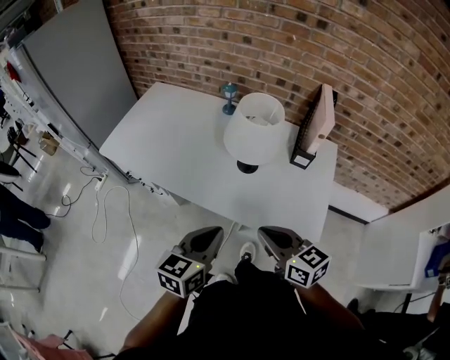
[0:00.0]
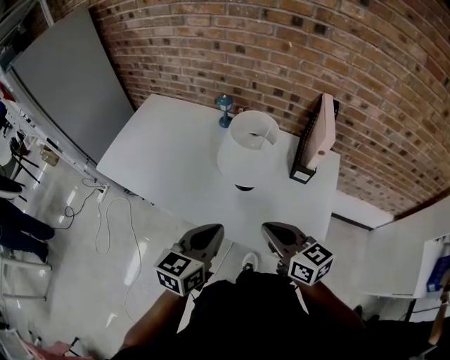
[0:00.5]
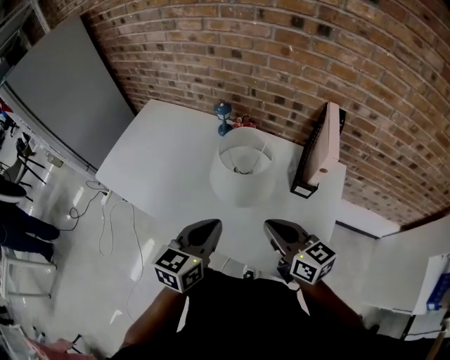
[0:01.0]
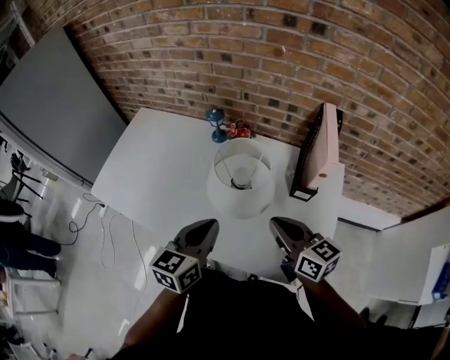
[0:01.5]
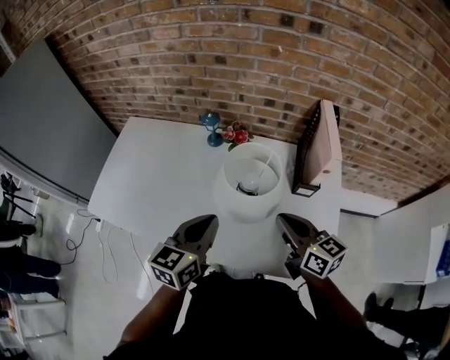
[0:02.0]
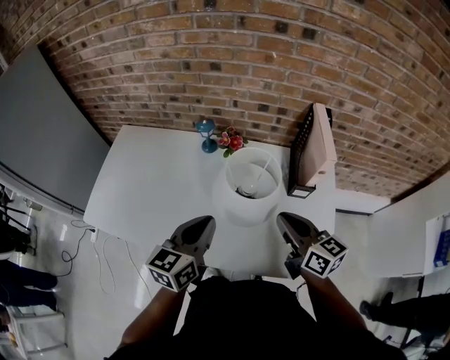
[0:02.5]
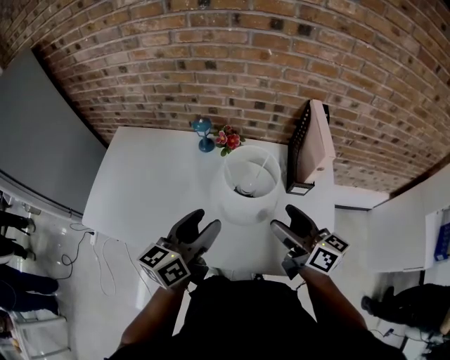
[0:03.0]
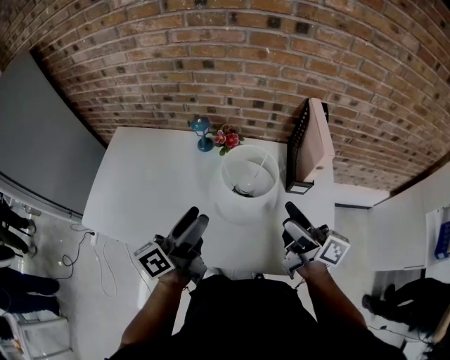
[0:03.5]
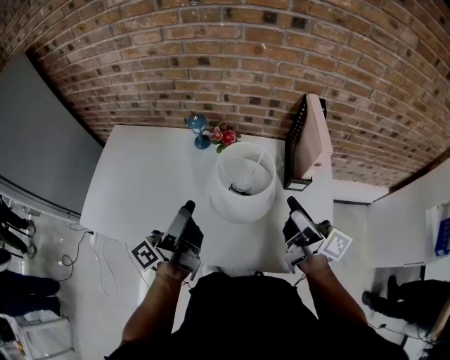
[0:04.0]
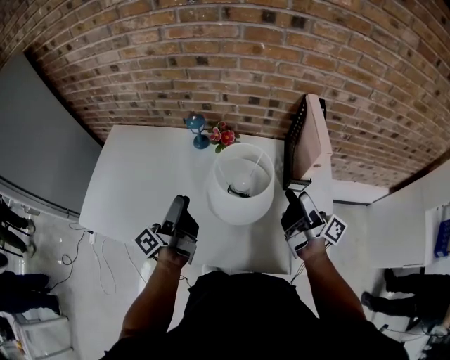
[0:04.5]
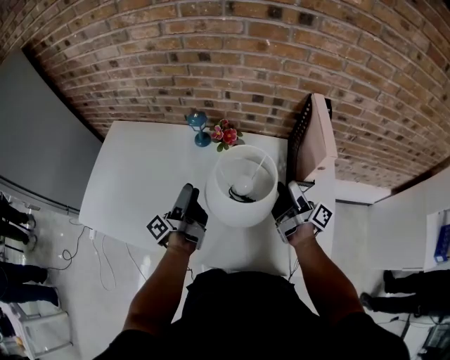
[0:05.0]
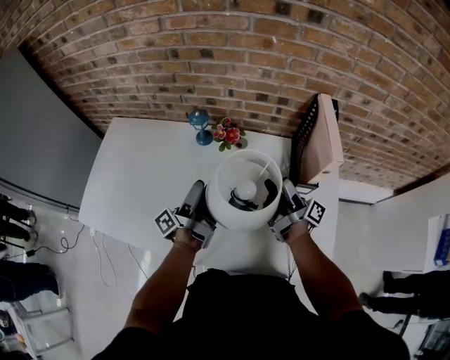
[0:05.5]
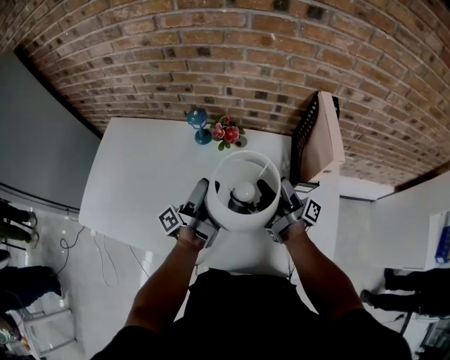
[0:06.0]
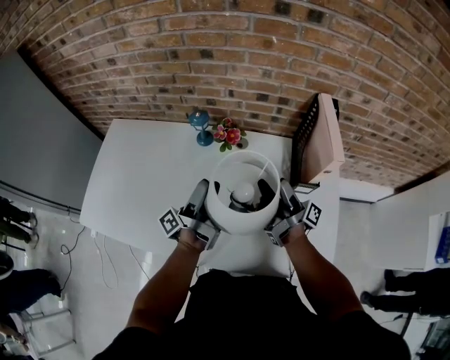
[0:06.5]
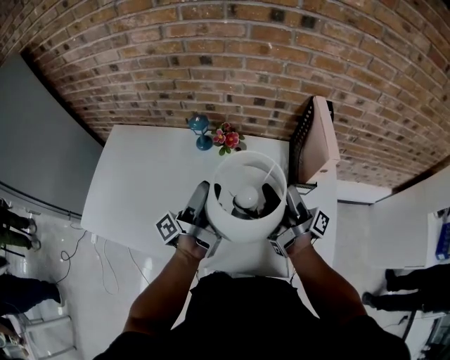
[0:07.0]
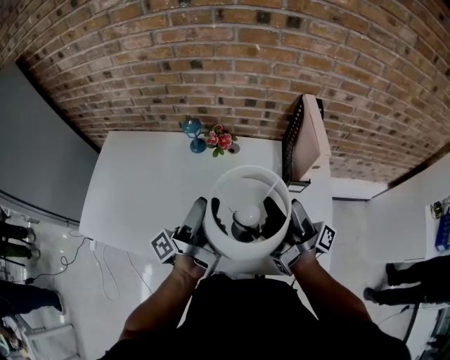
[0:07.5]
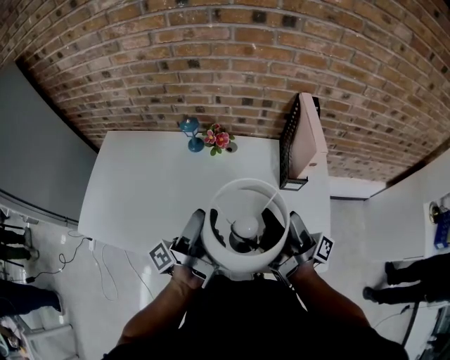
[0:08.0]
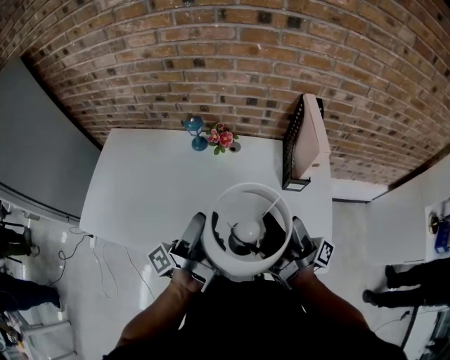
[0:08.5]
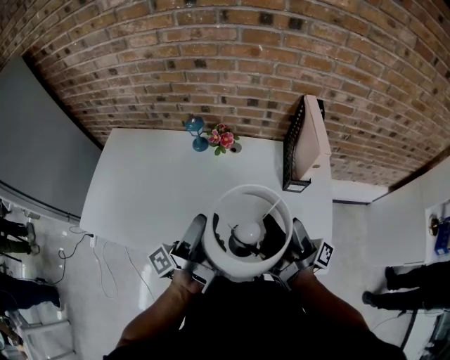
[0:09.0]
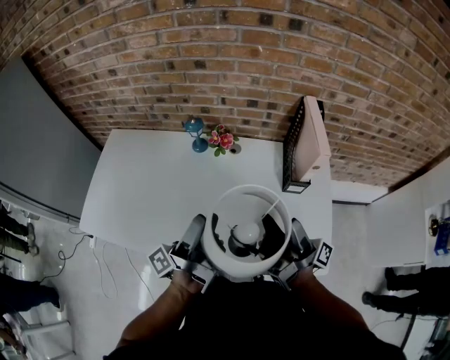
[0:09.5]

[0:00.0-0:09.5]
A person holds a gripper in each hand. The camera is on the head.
0:00.0 to 0:02.0: Both grippers move forward, approximately 25 cm.
0:02.0 to 0:04.0: The left gripper travels to the left by roughly 5 cm, rolls counterclockwise, seen from behind, by roughly 50 degrees, and opens up. Meanwhile the right gripper shifts by roughly 5 cm, rotates approximately 40 degrees, and opens up.
0:04.0 to 0:05.5: The right gripper heads forward and downward, covering roughly 15 cm, and swivels some 30 degrees. The left gripper goes some 15 cm downward and forward.
0:05.5 to 0:07.5: The two grippers go approximately 15 cm upward and backward.
0:07.5 to 0:09.5: The grippers make only small movements.

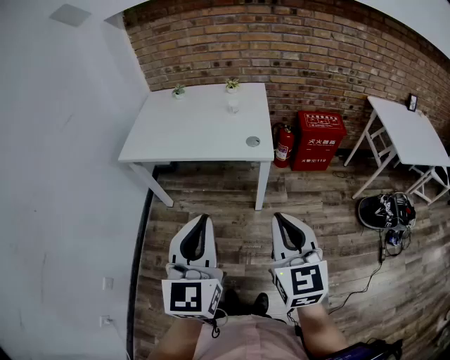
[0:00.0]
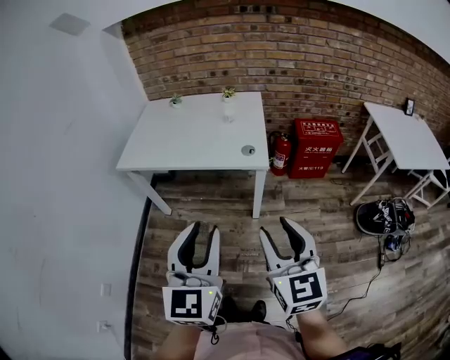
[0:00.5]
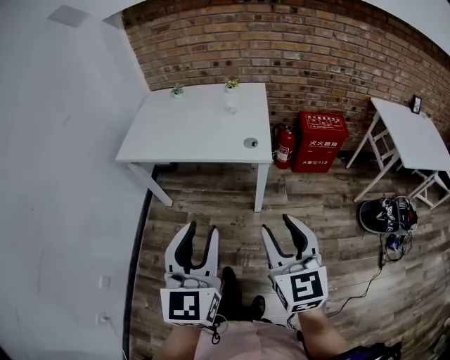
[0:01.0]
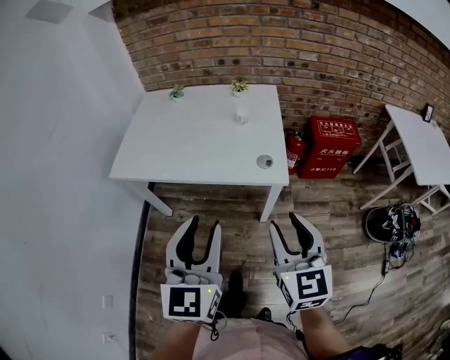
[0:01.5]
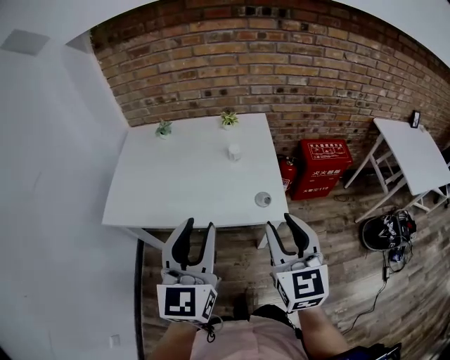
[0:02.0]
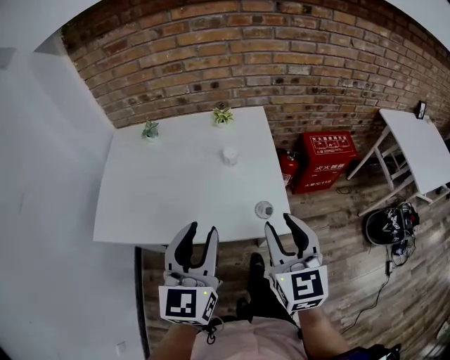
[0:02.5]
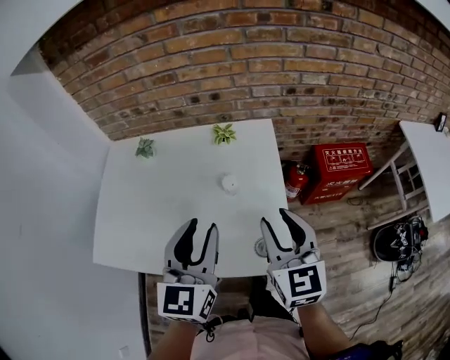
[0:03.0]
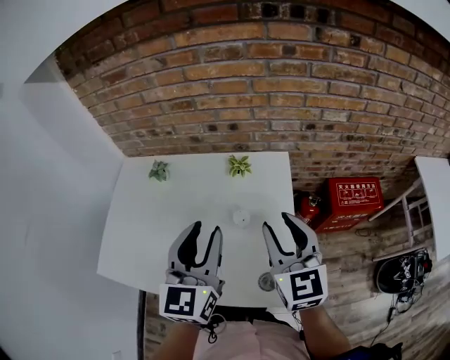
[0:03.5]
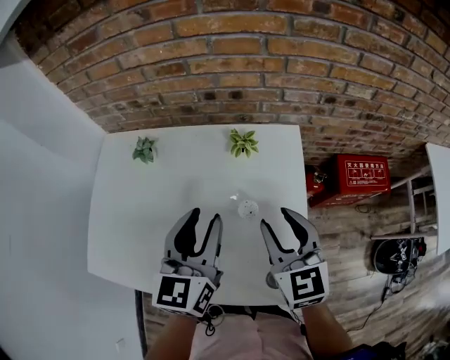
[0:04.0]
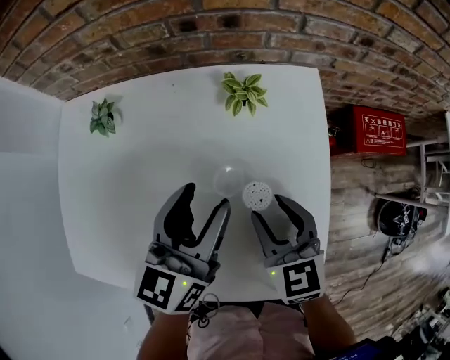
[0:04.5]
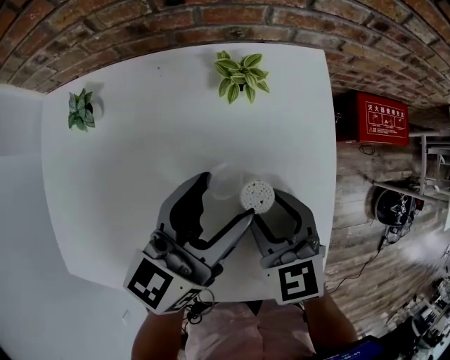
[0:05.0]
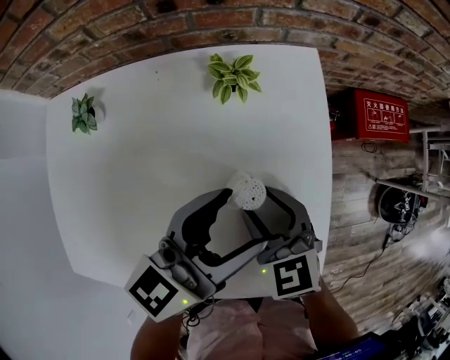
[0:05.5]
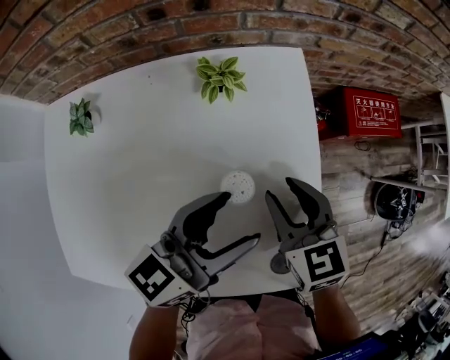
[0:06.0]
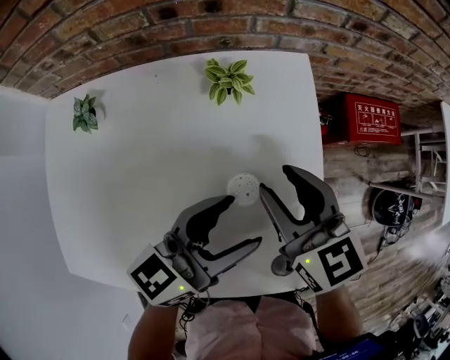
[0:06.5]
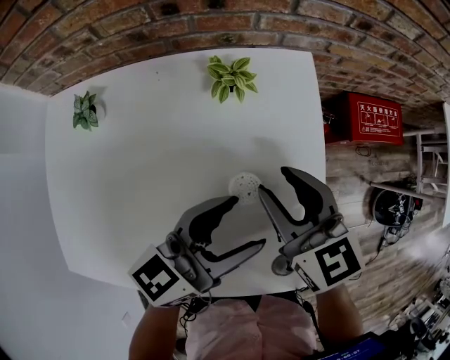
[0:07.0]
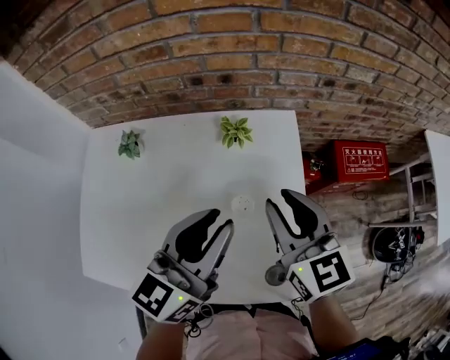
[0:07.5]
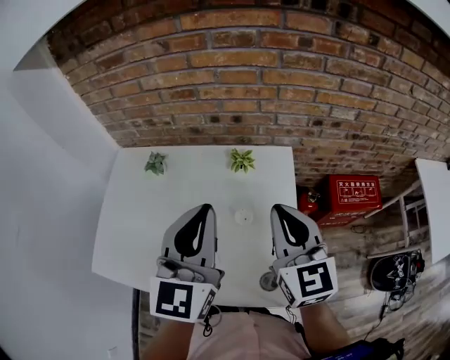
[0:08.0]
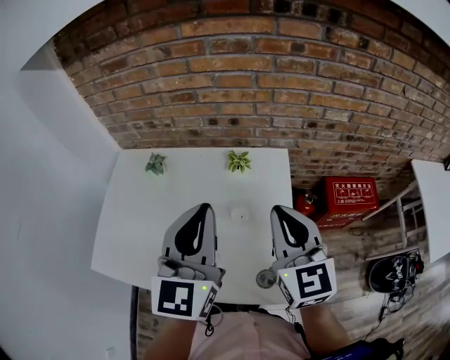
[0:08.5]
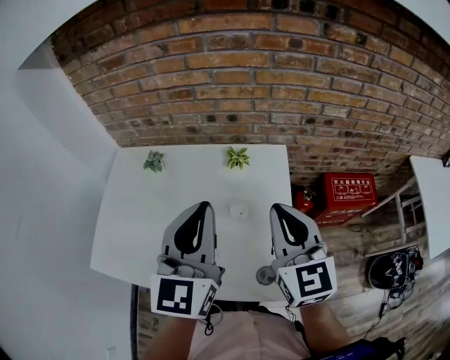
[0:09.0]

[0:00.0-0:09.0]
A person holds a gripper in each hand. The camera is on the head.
0:00.0 to 0:02.0: The grippers both shift forward by roughly 30 cm. The left gripper opens its fingers, while the right gripper opens.
0:02.0 to 0:04.5: The grippers both shift forward and downward by about 40 cm. The left gripper swivels roughly 30 degrees; the right gripper turns by approximately 30 degrees.
0:04.5 to 0:07.0: The right gripper shifts by some 5 cm, while the left gripper shifts approximately 10 cm to the right, and changes its angle by approximately 30 degrees.
0:07.0 to 0:09.0: The right gripper moves upward and backward, roughly 20 cm, turns by approximately 20 degrees, and closes its fingers. The left gripper is displaced upward by some 25 cm, rotates approximately 60 degrees, and closes up.

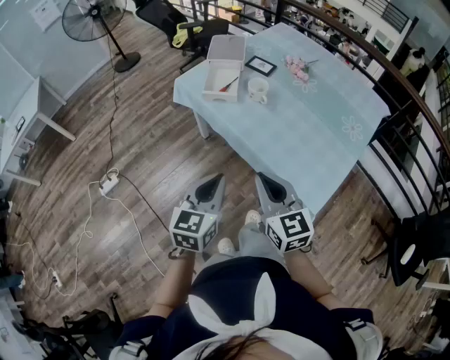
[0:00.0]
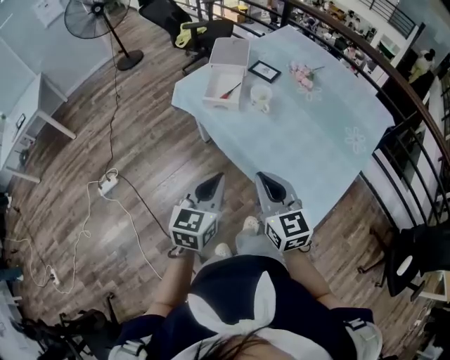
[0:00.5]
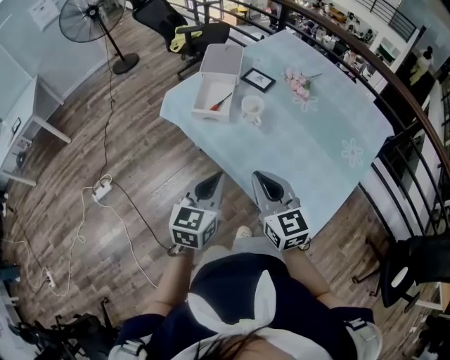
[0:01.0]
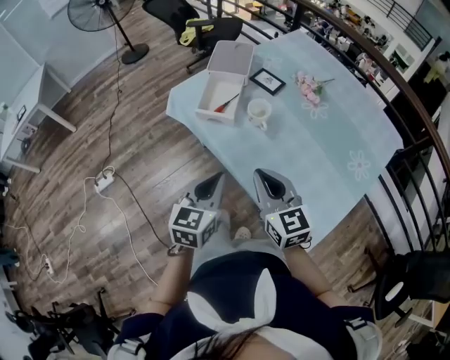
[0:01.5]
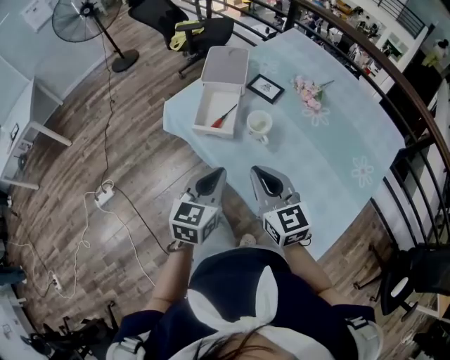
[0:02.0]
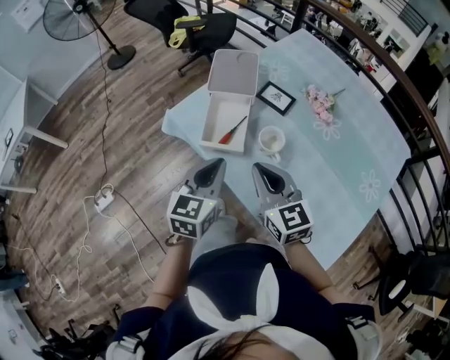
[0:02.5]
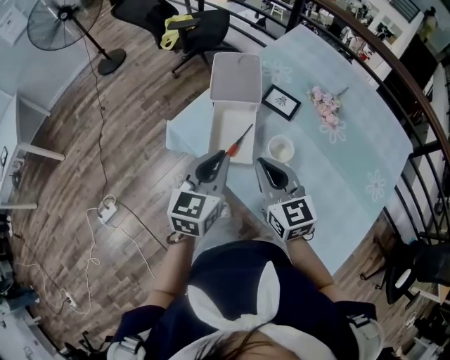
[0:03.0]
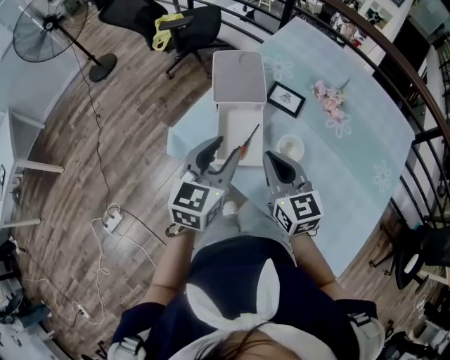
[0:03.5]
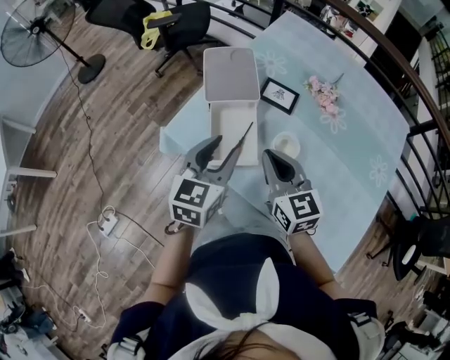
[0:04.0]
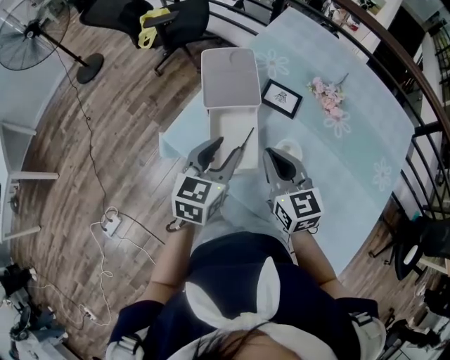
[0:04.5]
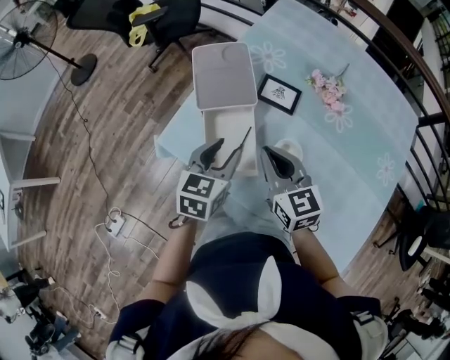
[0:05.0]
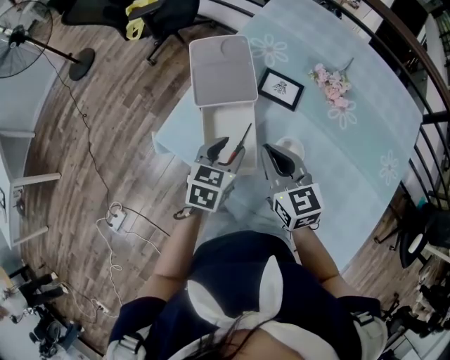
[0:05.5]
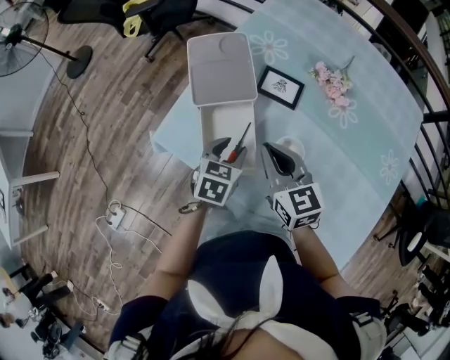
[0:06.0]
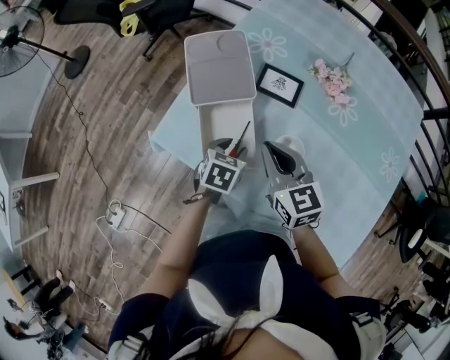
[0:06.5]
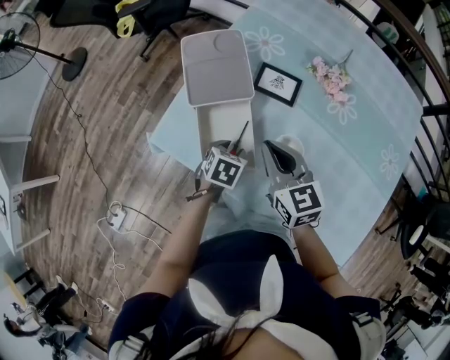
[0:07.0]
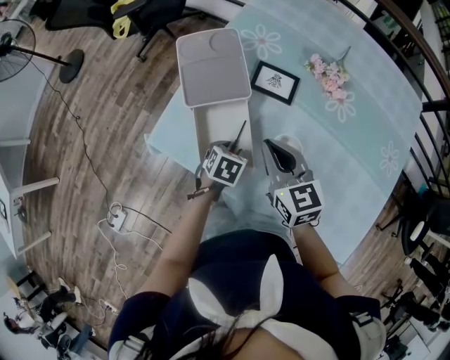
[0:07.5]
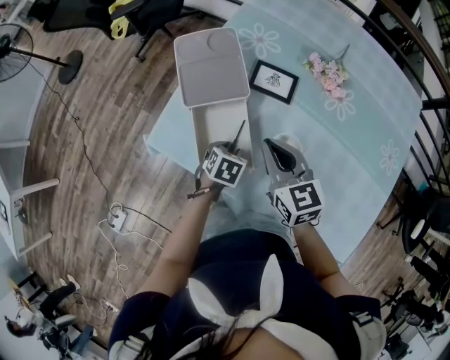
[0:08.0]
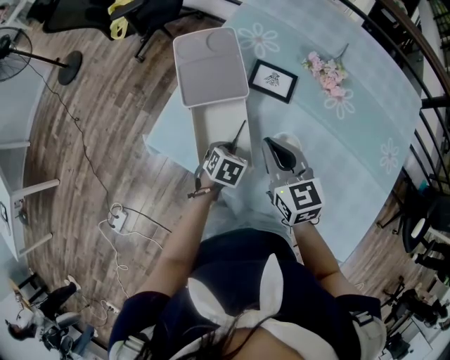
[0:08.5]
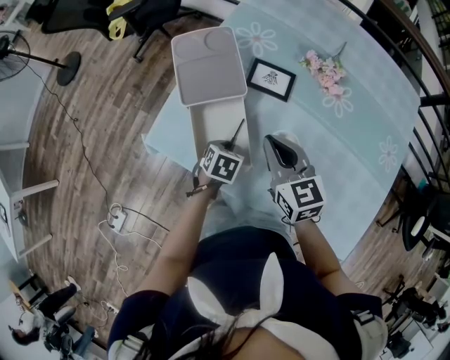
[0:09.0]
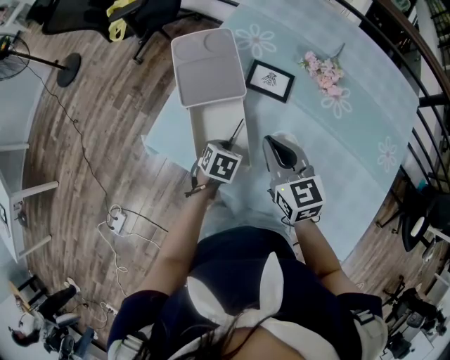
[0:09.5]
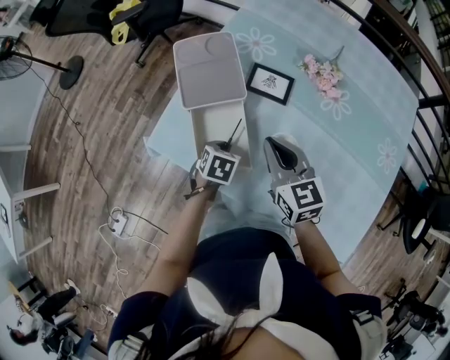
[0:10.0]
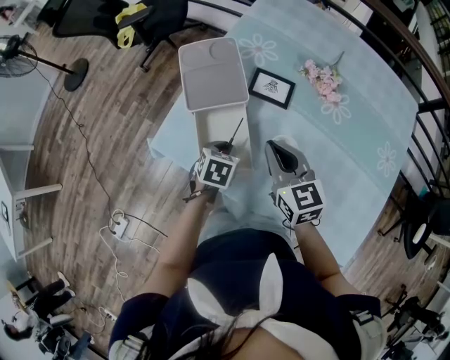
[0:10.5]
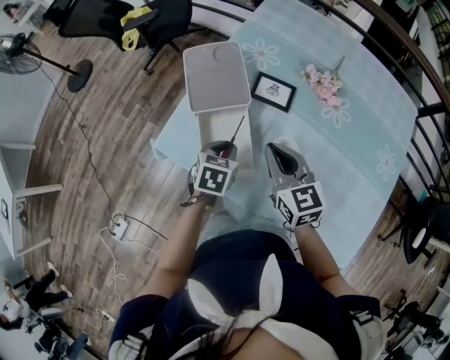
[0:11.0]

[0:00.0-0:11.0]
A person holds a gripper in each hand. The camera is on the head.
0:00.0 to 0:02.0: The two grippers go roughly 30 cm forward.
0:02.0 to 0:03.5: The two grippers go roughly 25 cm forward and to the left. The left gripper opens its fingers.
0:03.5 to 0:05.5: The left gripper travels downward and forward by some 20 cm, and rotates some 20 degrees, while the right gripper heads forward and downward, covering some 10 cm.
0:05.5 to 0:07.5: The left gripper is displaced downward by approximately 15 cm, and swivels roughly 30 degrees.
0:07.5 to 0:09.0: The left gripper closes.
0:09.0 to 0:11.0: The left gripper heads upward, covering approximately 10 cm.
